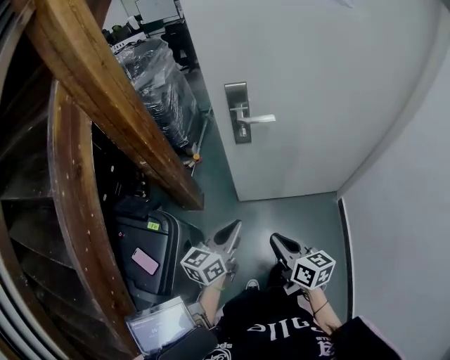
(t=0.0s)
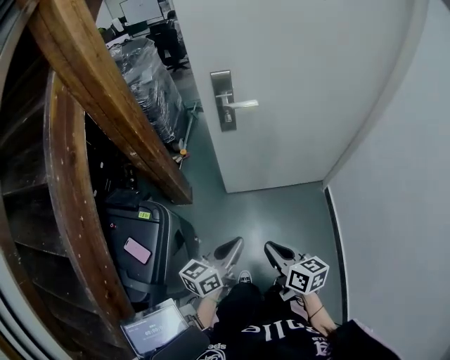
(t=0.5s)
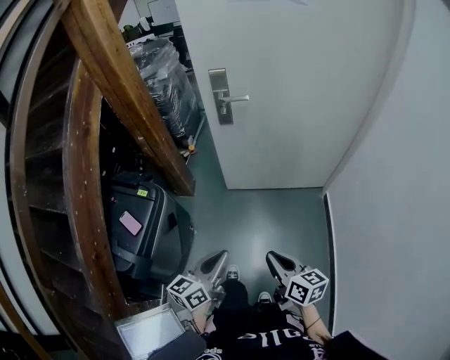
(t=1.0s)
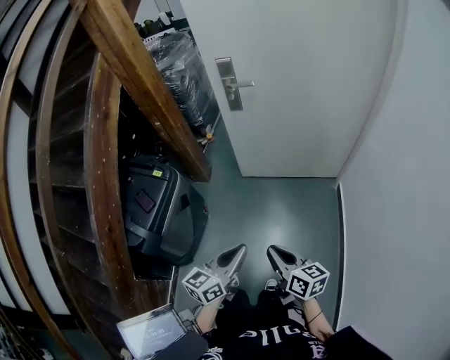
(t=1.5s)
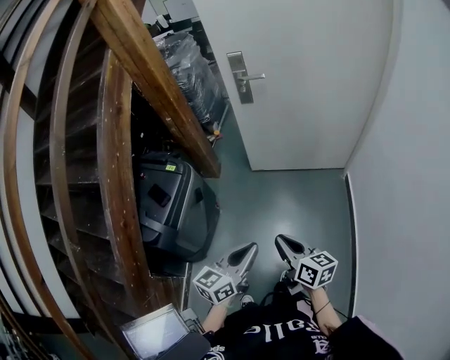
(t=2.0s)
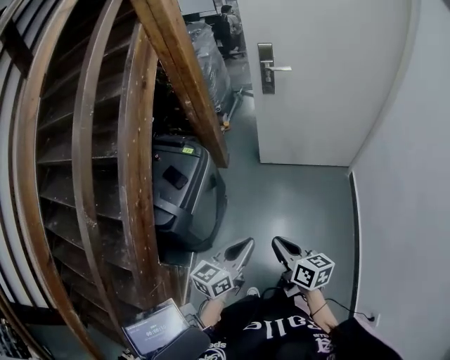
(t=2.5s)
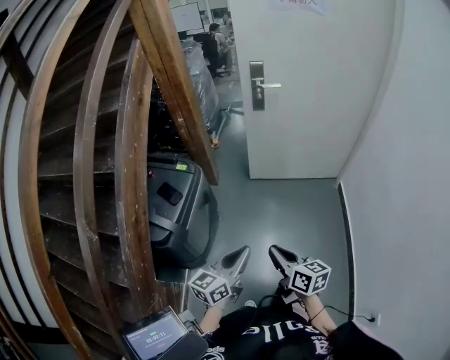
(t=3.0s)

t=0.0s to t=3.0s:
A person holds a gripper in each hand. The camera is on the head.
t=0.0s to t=1.5s: Both grippers move backward and to the right, roughly 35 cm.
t=1.5s to t=3.0s: Both grippers move to the left and backward, roughly 20 cm.

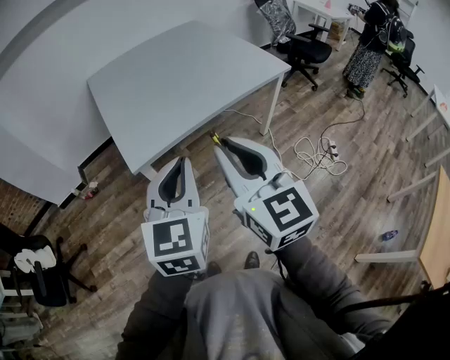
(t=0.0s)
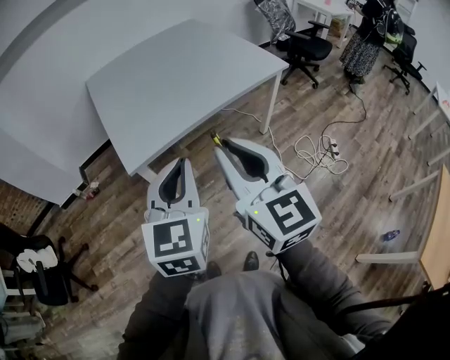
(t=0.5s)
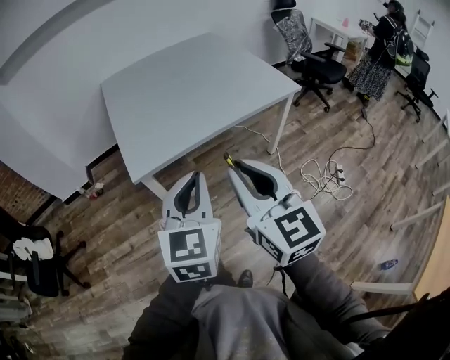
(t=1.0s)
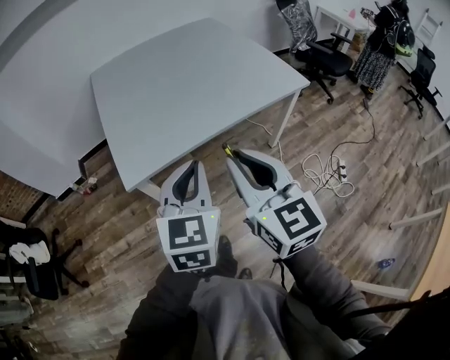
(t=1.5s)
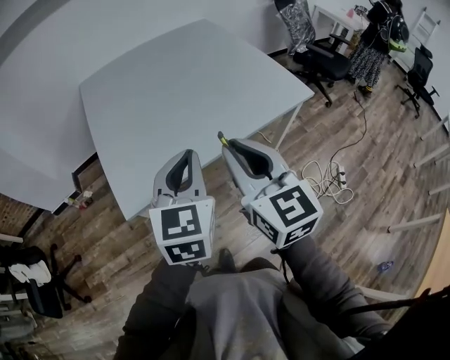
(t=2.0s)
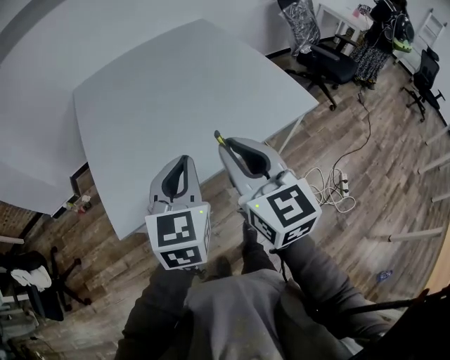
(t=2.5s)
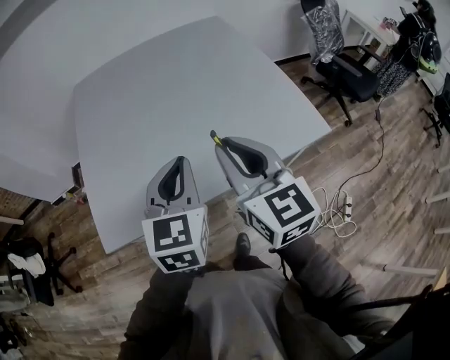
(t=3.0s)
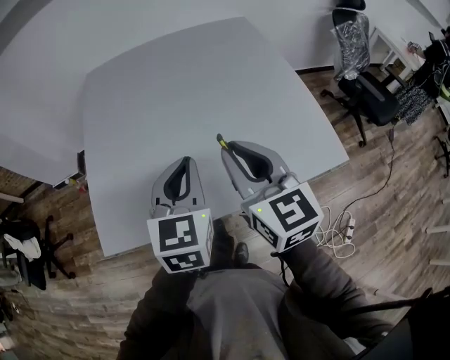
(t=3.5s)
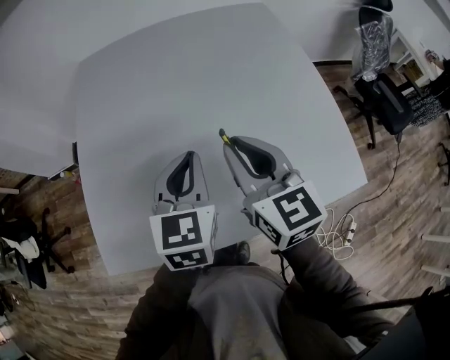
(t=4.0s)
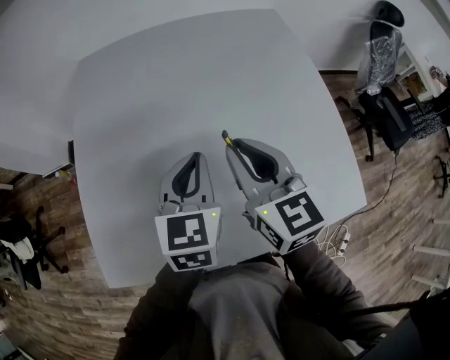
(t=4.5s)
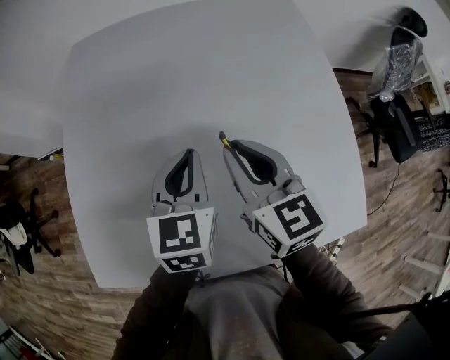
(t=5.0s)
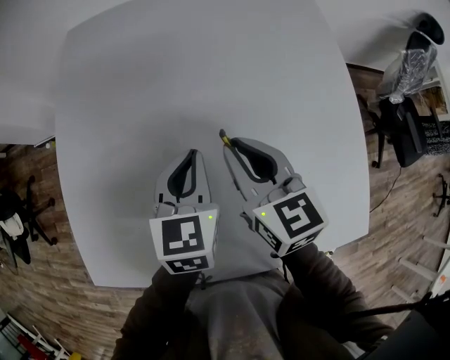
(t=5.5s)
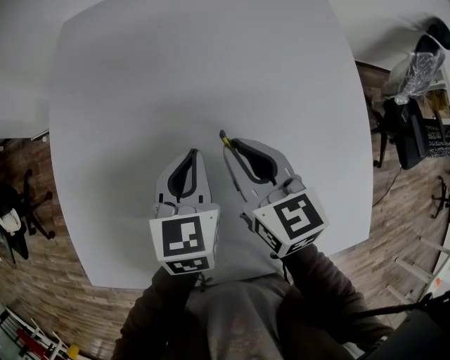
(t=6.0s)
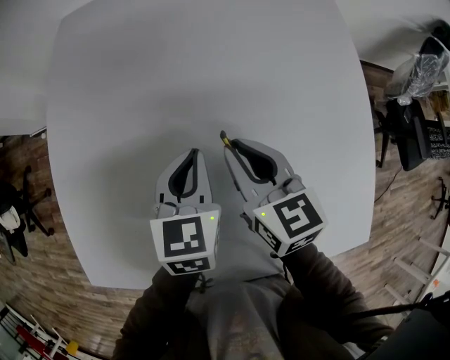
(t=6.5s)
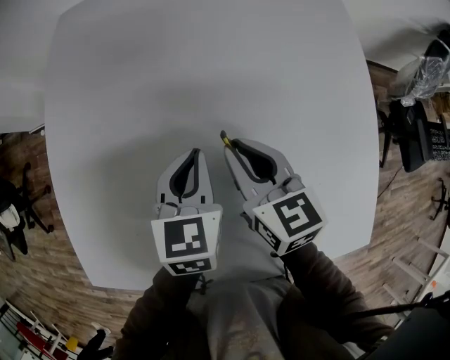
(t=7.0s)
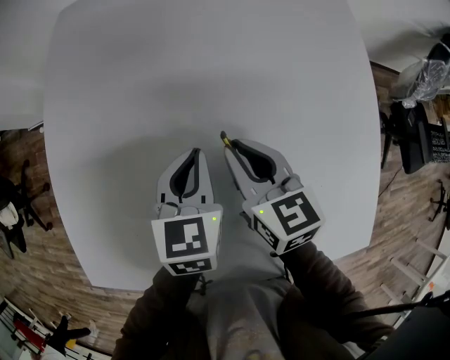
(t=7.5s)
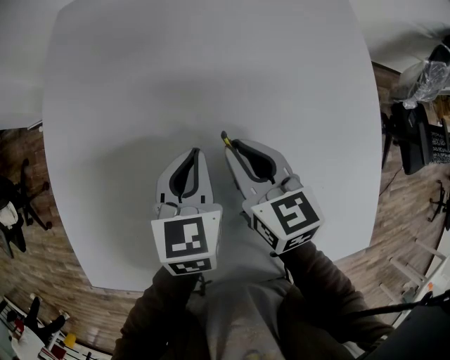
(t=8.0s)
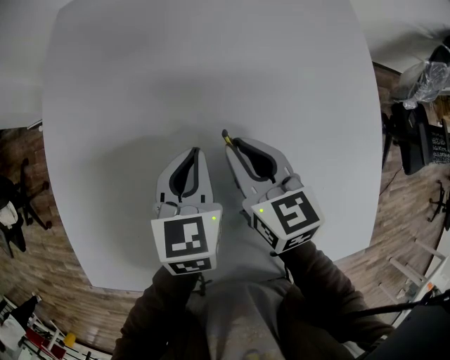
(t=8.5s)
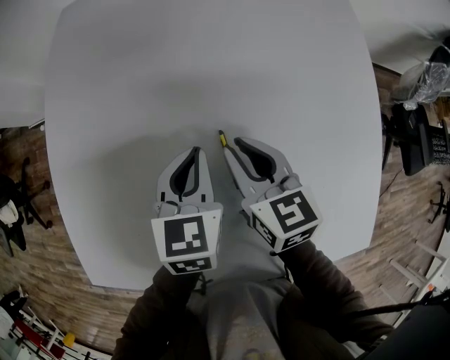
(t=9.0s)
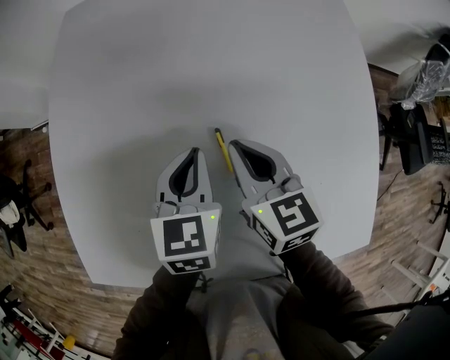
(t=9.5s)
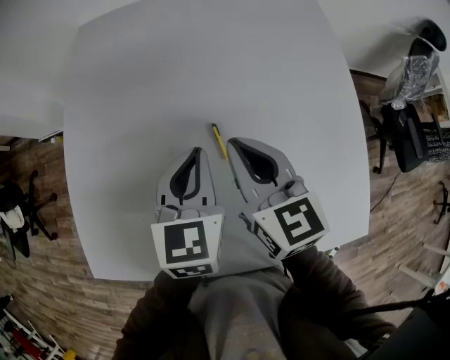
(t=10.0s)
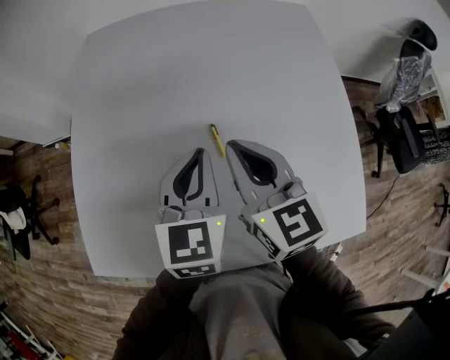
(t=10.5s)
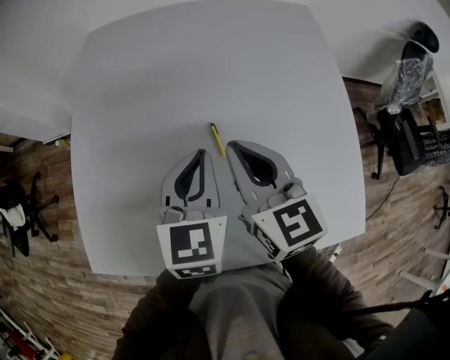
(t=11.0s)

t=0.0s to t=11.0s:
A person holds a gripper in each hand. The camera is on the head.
t=0.0s to t=2.0s: Both grippers move forward, some 25 cm.
t=2.0s to t=3.5s: Both grippers move forward and to the right, roughly 25 cm.
t=3.5s to t=5.5s: The two grippers go some 30 cm forward and downward.
t=5.5s to t=7.5s: The two grippers go approximately 5 cm downward.
t=7.5s to t=9.0s: Both grippers stay about where they are.
t=9.0s to t=11.0s: Both grippers move upward and backward, approximately 15 cm.

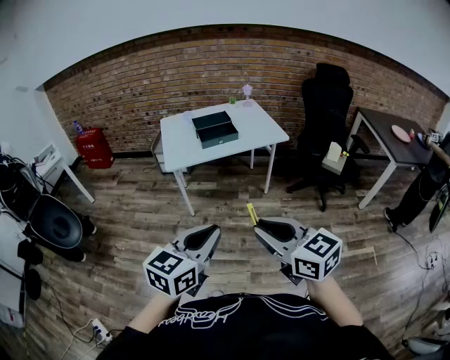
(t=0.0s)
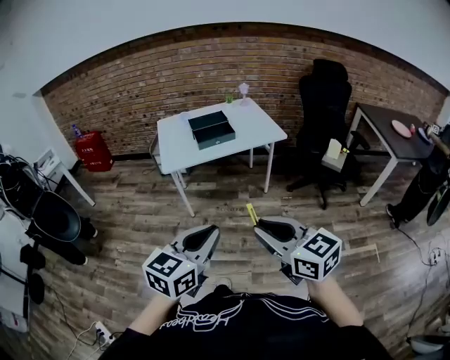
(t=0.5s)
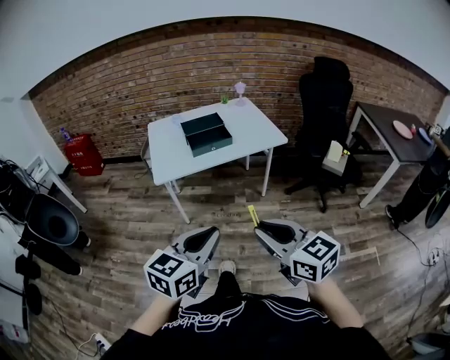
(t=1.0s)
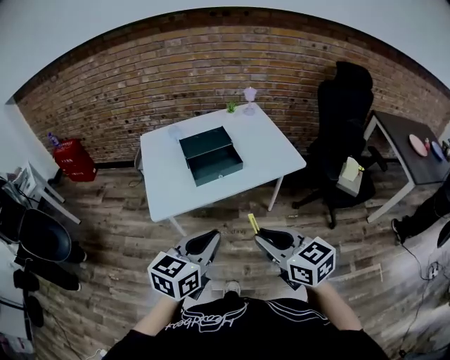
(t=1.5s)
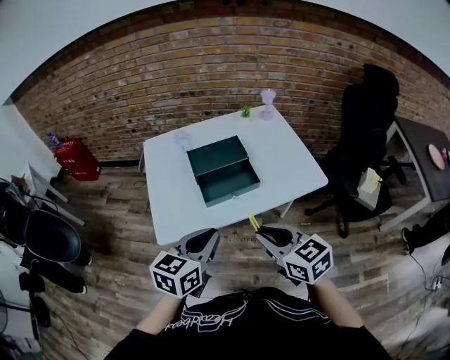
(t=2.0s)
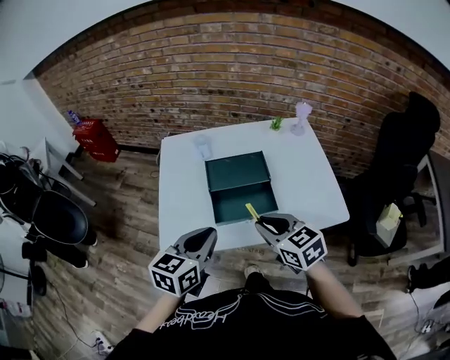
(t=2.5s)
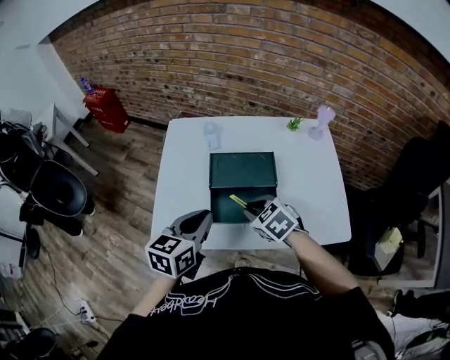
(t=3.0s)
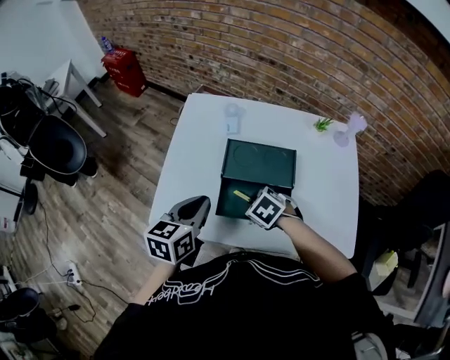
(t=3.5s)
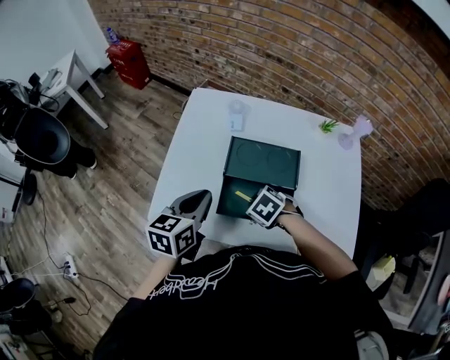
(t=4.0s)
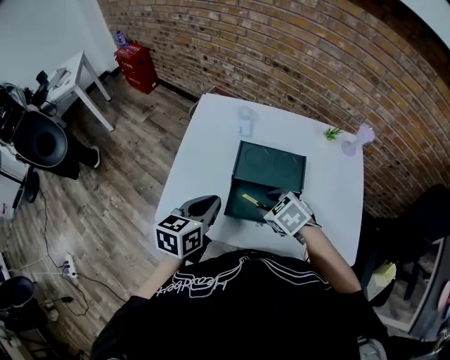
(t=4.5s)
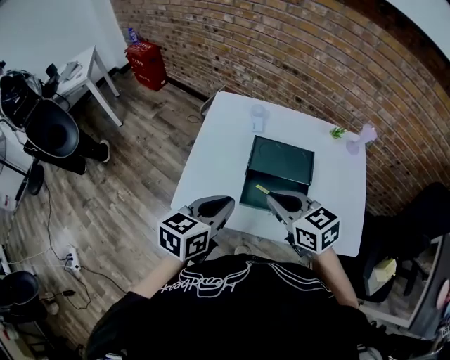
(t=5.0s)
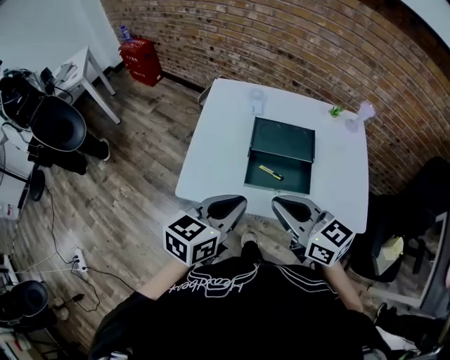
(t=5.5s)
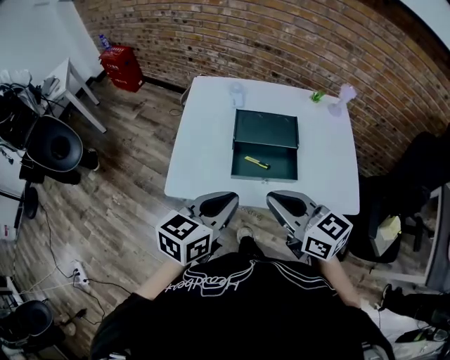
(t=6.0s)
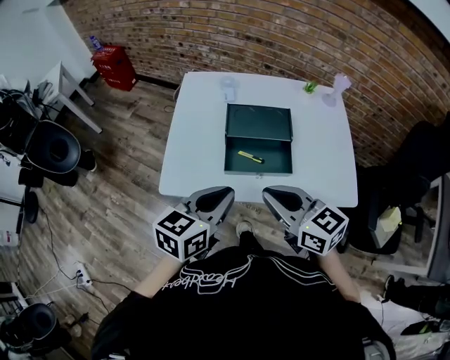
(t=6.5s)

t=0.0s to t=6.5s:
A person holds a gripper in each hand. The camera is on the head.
t=0.0s to t=2.0s: The pair of grippers is taken forward, some 50 cm.
t=2.0s to t=4.5s: The left gripper shifts by approximately 20 cm, and rotates about 30 degrees; the right gripper ends up roughly 30 cm from where it was, angles its fingers downward, by roughly 40 degrees, and opens.
t=4.5s to t=6.5s: The left gripper travels backward and upward by approximately 15 cm; the right gripper moves upward and backward, approximately 25 cm, angles its fingers upward, by about 40 degrees, and closes.

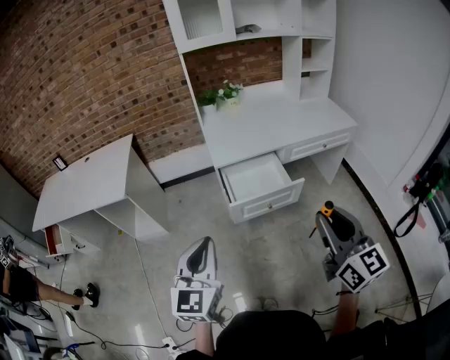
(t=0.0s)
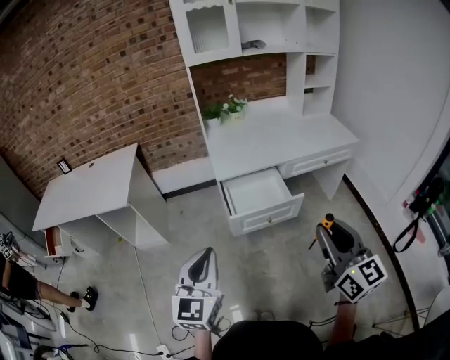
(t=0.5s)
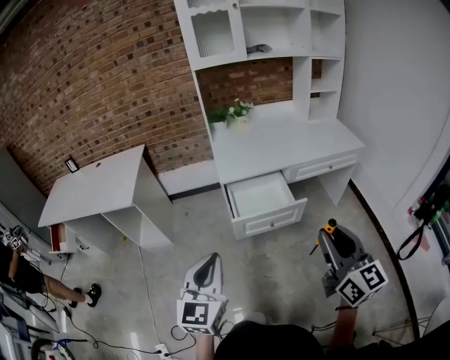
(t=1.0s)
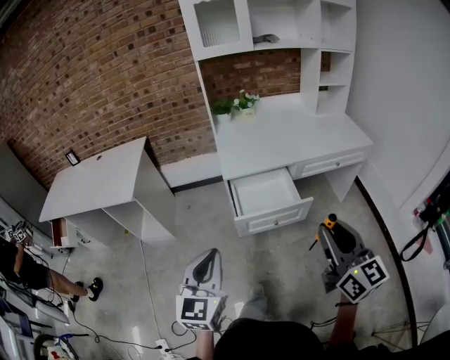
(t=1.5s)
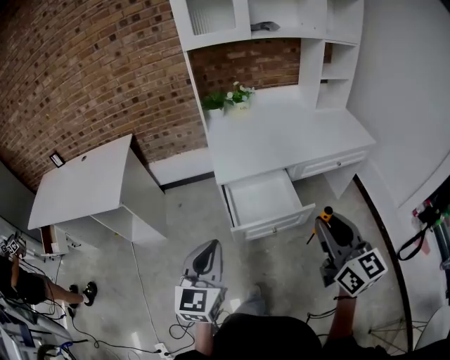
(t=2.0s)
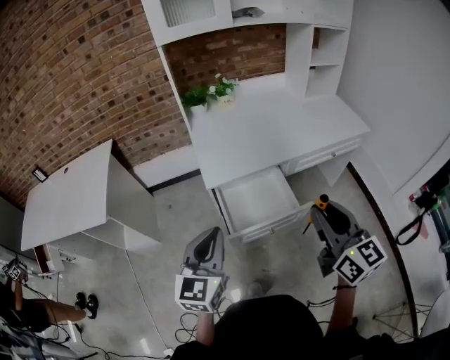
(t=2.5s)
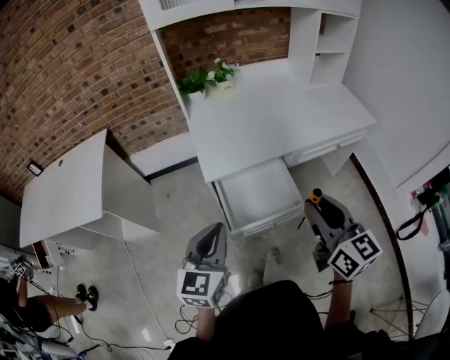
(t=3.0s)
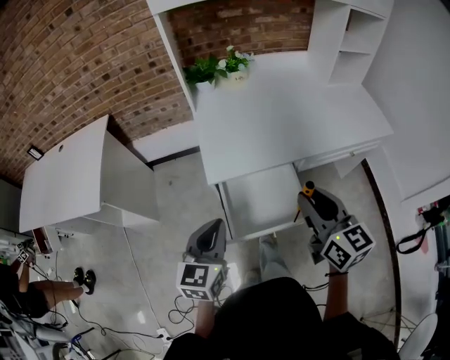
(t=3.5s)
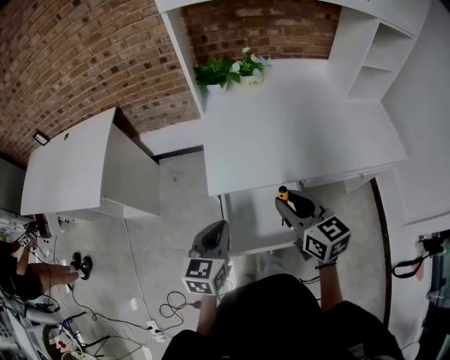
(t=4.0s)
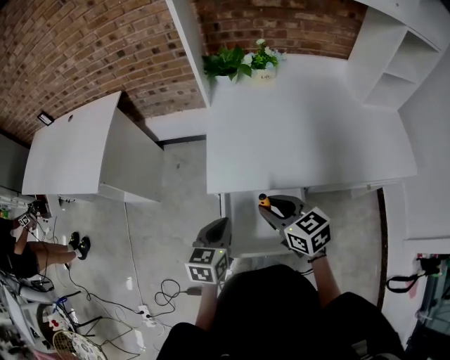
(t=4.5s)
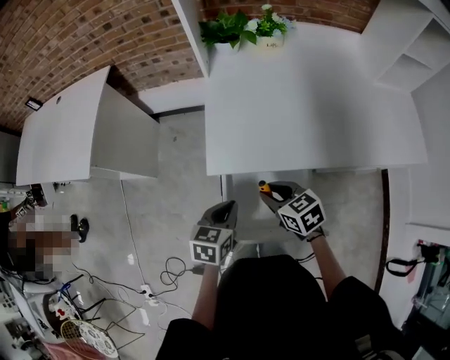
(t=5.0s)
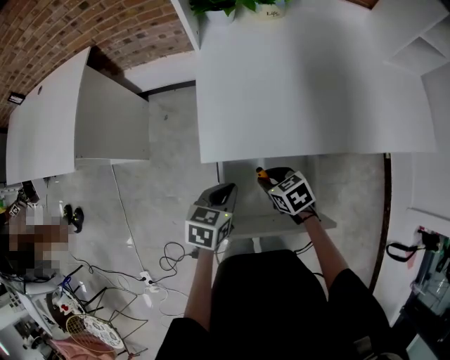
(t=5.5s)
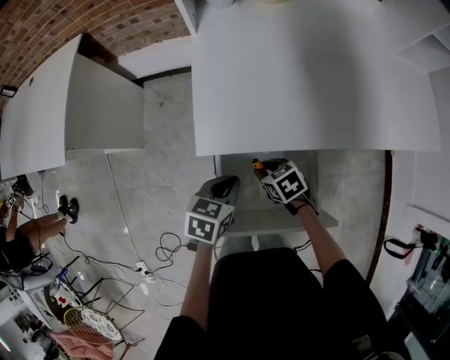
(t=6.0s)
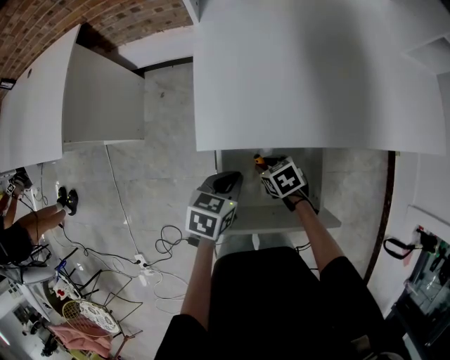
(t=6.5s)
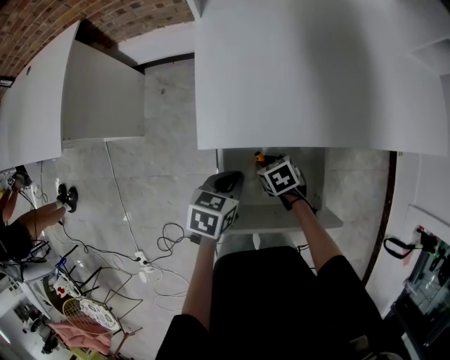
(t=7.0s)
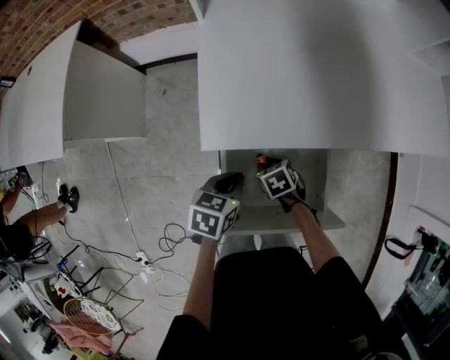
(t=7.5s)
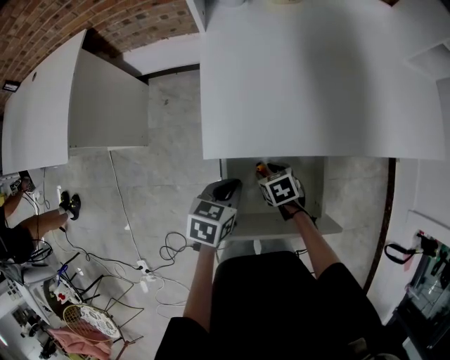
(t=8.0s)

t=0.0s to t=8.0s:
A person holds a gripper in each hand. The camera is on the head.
t=0.0s to t=2.0s: The grippers both shift forward by approximately 15 cm.
t=2.0s to t=4.0s: Both grippers travel together forward and downward, about 30 cm. The left gripper turns by approximately 20 degrees; the right gripper turns by approximately 30 degrees.
t=4.0s to t=6.0s: The right gripper travels downward by roughly 35 cm, and angles its fingers downward, by roughly 40 degrees. The left gripper goes roughly 20 cm downward, and rotates approximately 30 degrees.
